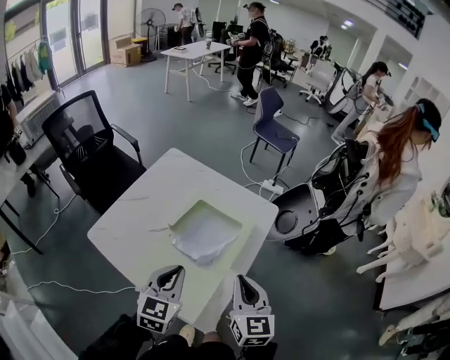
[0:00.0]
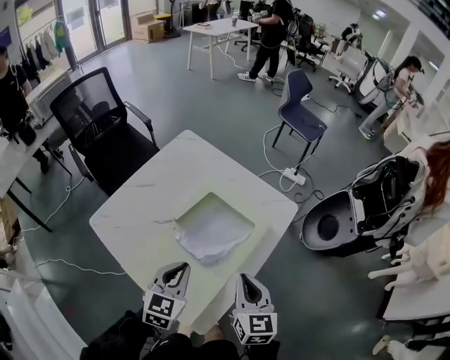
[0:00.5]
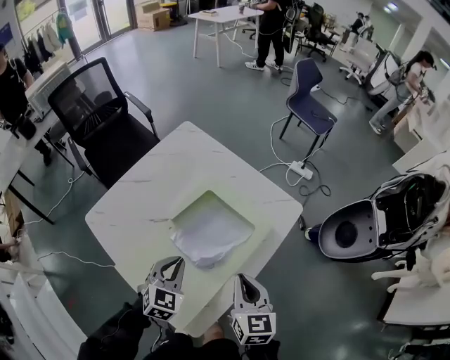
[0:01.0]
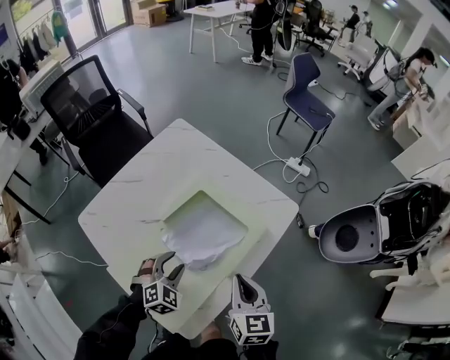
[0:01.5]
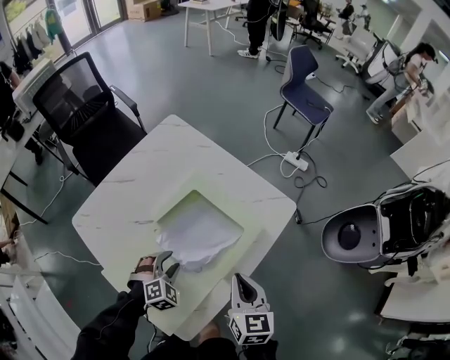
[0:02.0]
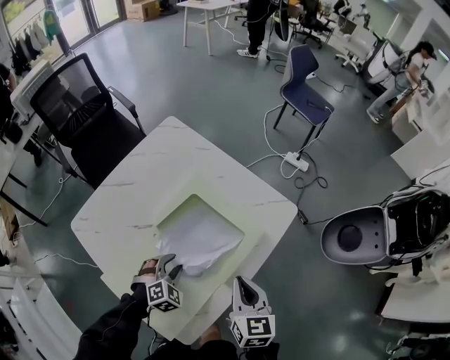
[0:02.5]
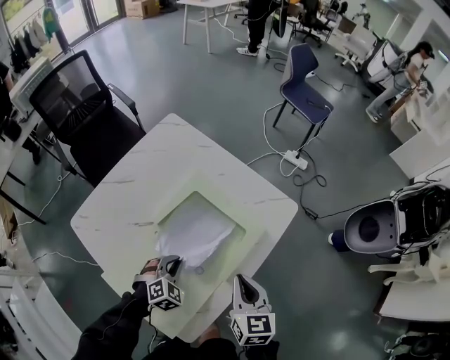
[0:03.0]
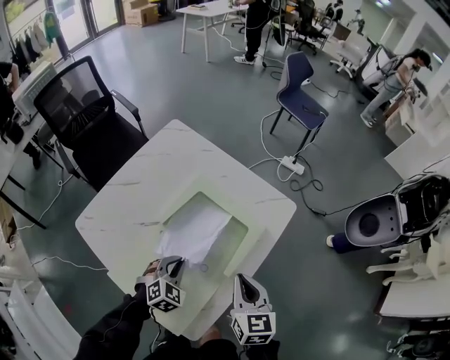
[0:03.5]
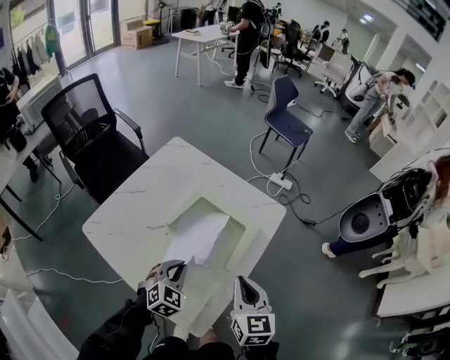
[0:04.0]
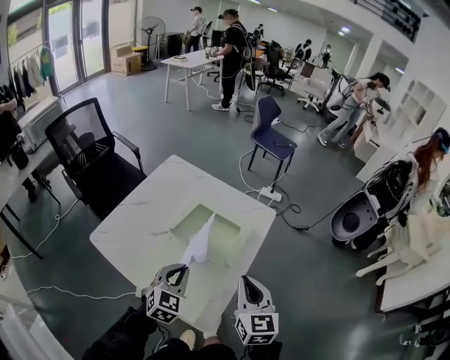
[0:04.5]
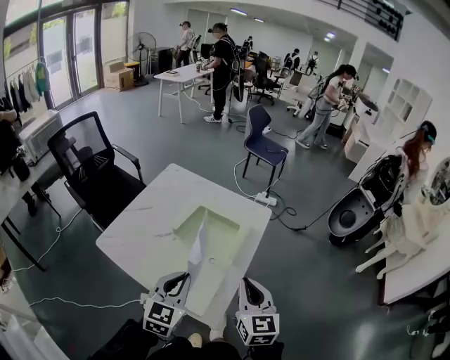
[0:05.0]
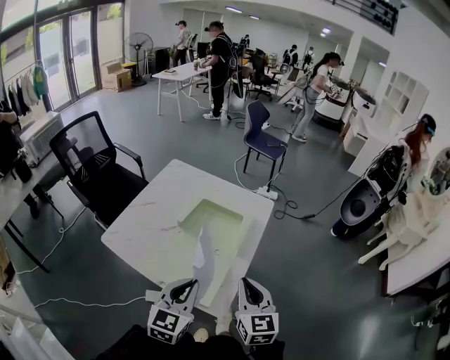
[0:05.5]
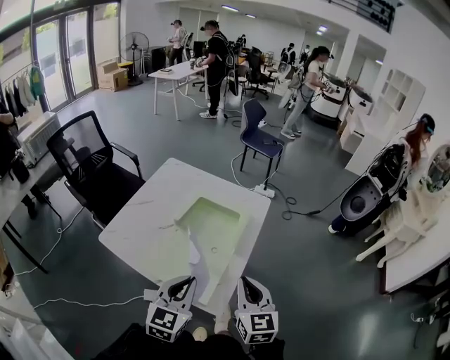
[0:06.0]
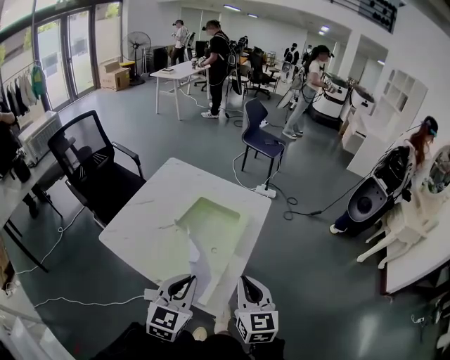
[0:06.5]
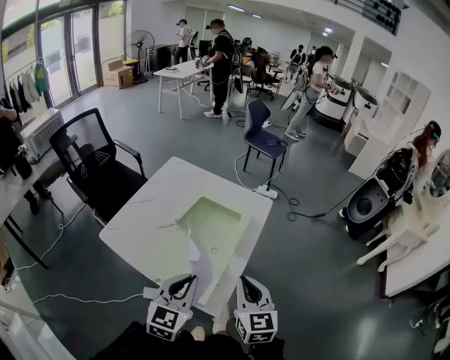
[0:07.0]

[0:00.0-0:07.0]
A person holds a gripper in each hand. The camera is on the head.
0:00.0 to 0:02.0: The right gripper heads forward, downward and to the right, covering about 25 cm. The left gripper shifts roughly 30 cm downward and forward, tips its fingers downward by roughly 30 degrees, and opens its fingers.
0:02.0 to 0:03.5: The left gripper closes up.
0:03.5 to 0:05.0: The right gripper goes some 30 cm backward and upward, while the left gripper goes roughly 35 cm upward and backward, and angles its fingers upward, by about 30 degrees.
0:05.0 to 0:07.0: The left gripper heads backward, covering approximately 5 cm.

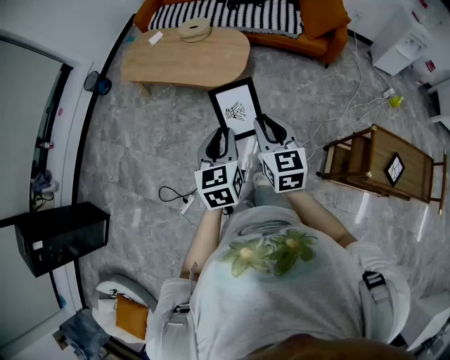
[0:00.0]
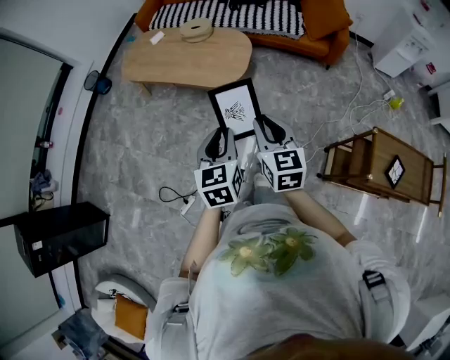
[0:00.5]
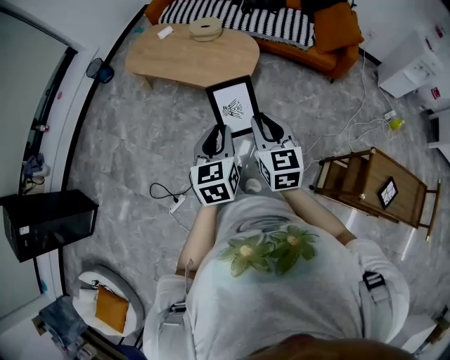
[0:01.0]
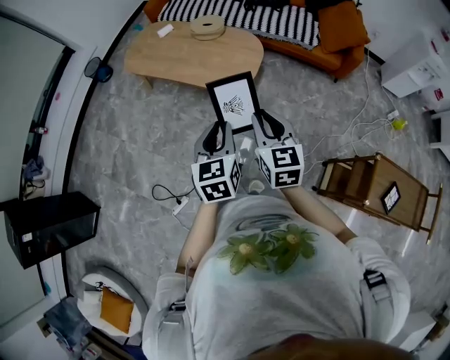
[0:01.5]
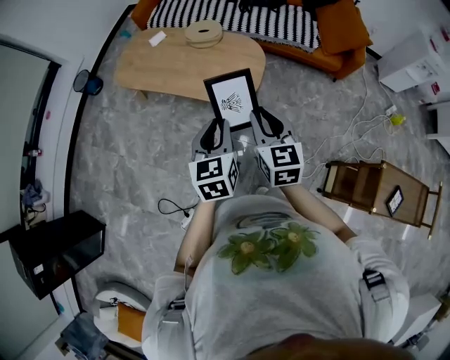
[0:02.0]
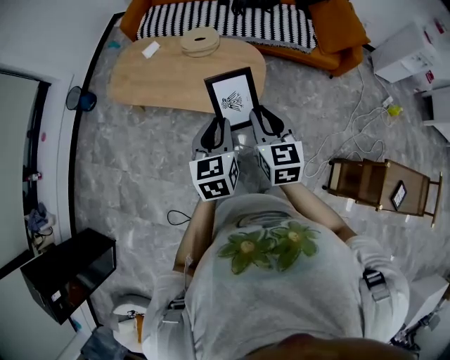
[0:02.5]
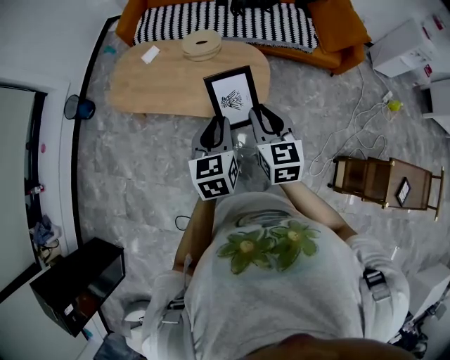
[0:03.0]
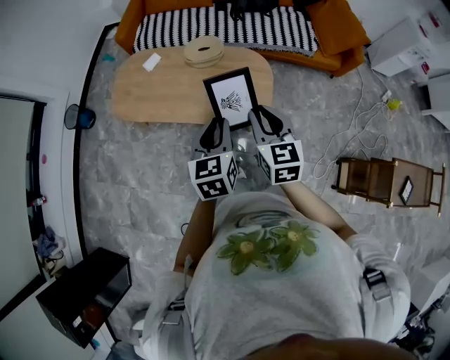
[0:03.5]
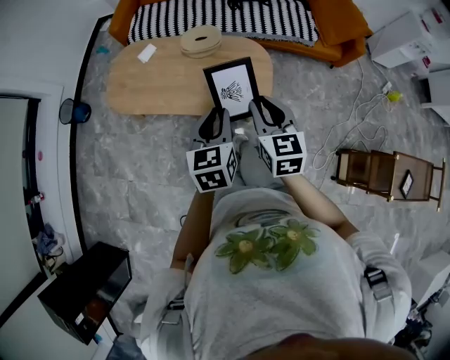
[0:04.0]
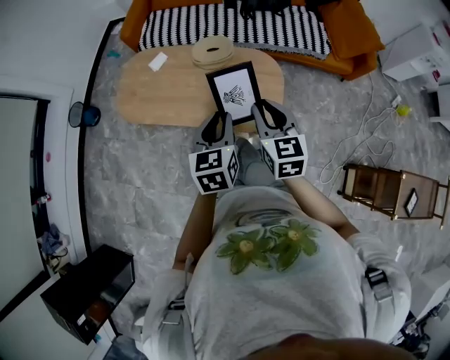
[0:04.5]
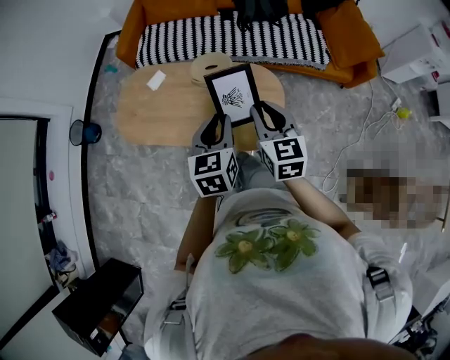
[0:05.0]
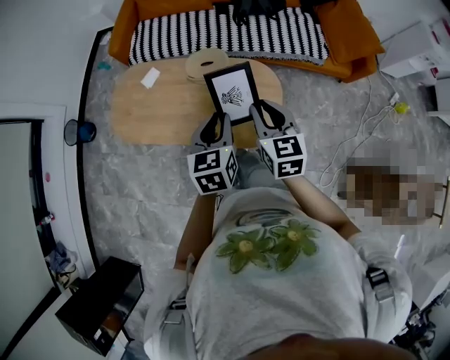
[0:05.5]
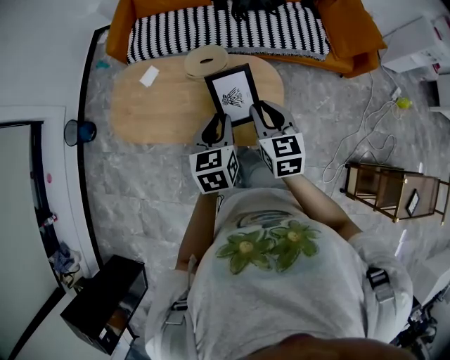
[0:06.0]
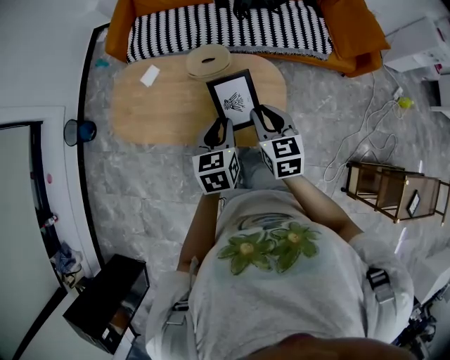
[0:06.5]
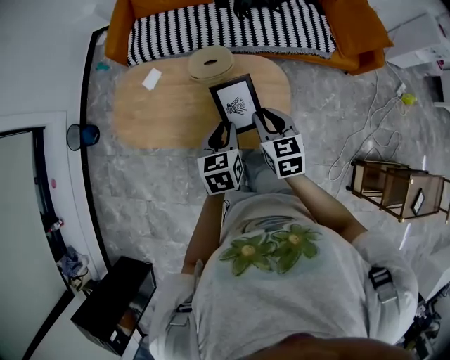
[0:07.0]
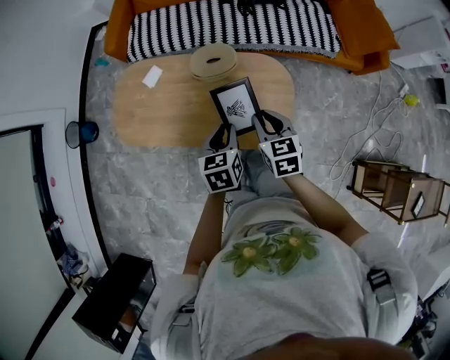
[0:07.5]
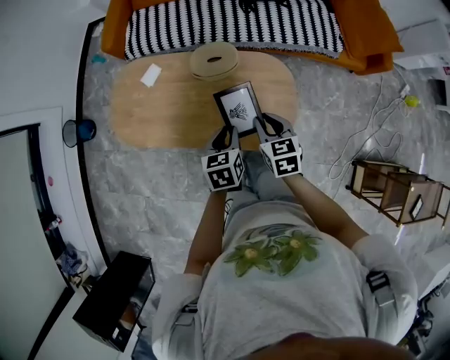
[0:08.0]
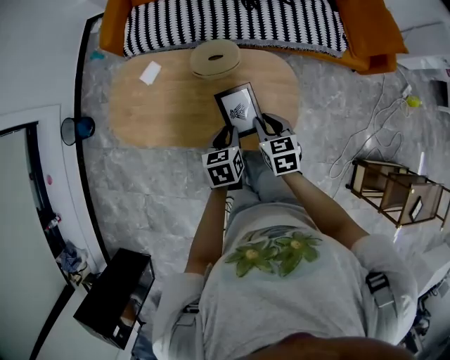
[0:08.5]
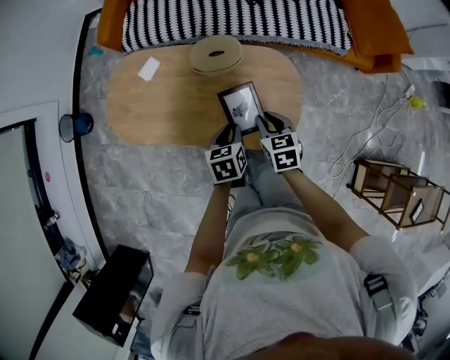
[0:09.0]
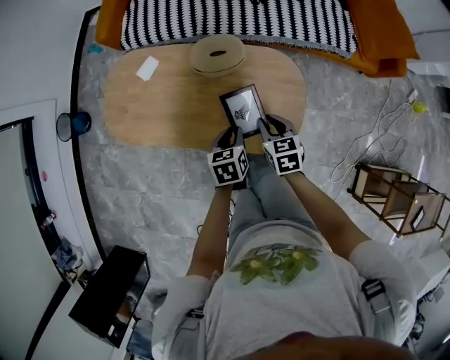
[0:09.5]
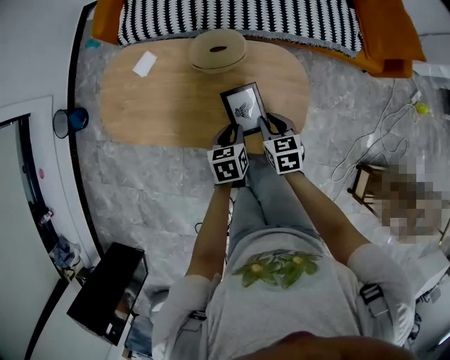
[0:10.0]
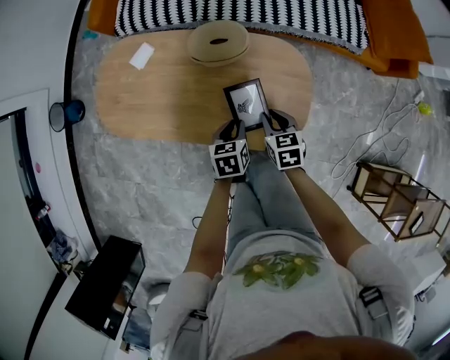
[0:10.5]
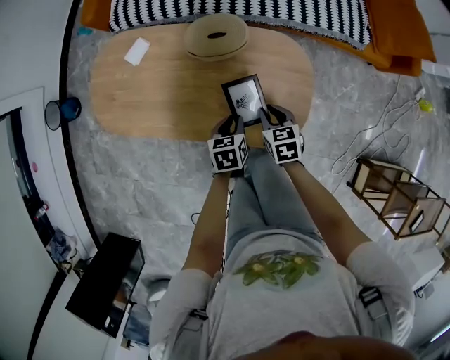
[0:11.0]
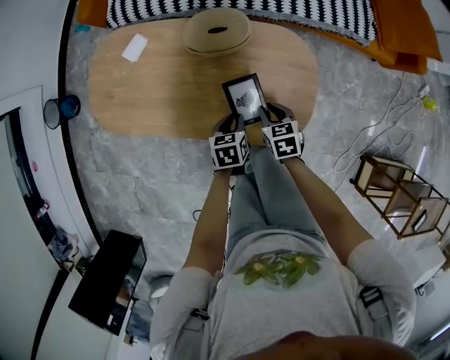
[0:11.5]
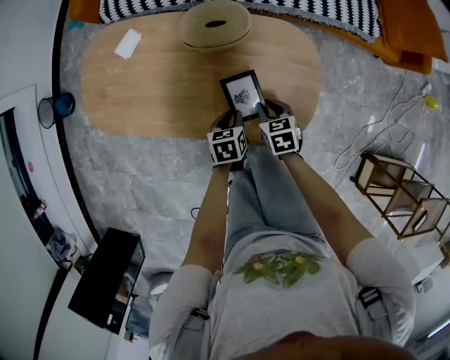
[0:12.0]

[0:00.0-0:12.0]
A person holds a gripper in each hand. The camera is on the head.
0:00.0 to 0:02.0: Both grippers travel together forward, about 20 cm.
0:02.0 to 0:04.0: The two grippers go some 20 cm forward and to the left.
0:04.0 to 0:06.0: The two grippers go roughly 15 cm forward.
0:06.0 to 0:08.0: Both grippers travel together downward, approximately 15 cm.
0:08.0 to 0:10.0: The grippers both shift downward by approximately 15 cm.
0:10.0 to 0:12.0: The grippers both shift downward by roughly 15 cm.

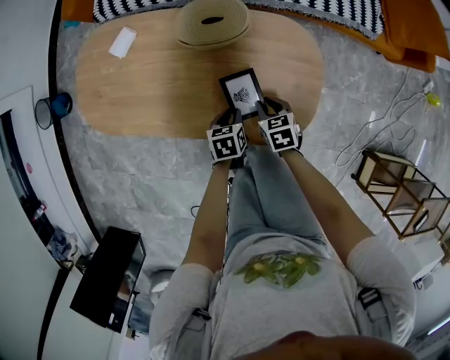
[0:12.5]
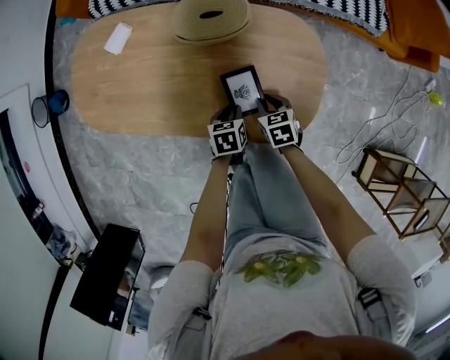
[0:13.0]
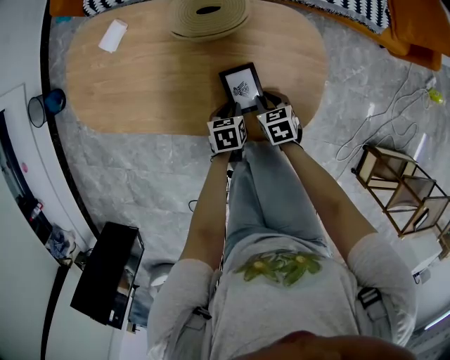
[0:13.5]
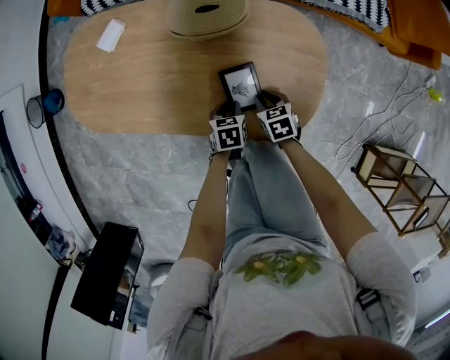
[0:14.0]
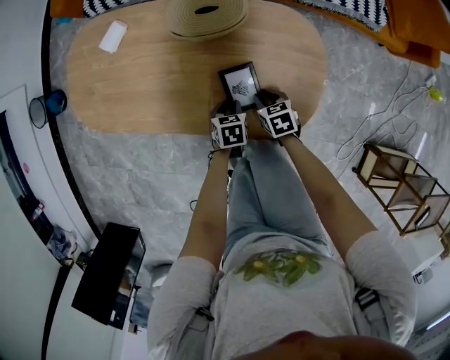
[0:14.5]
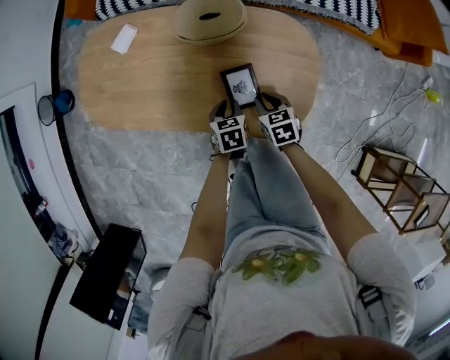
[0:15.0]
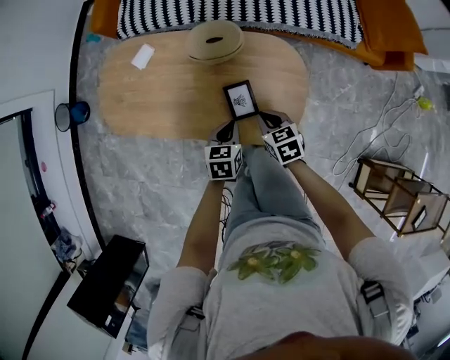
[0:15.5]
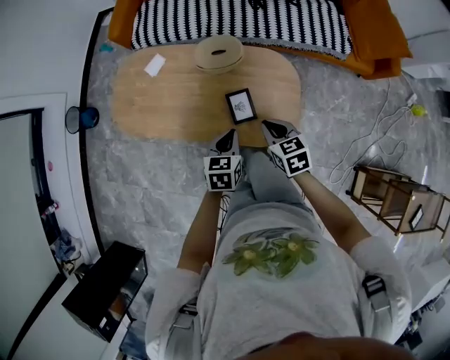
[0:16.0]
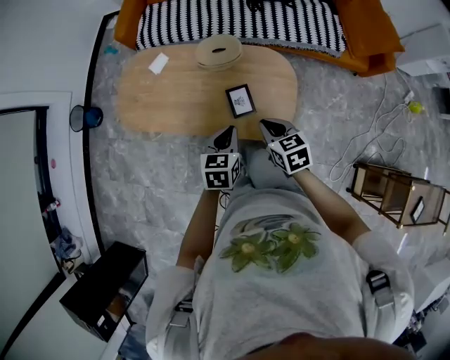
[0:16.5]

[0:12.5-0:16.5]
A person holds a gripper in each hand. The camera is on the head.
0:12.5 to 0:14.5: Both grippers travel together downward, about 5 cm.
0:14.5 to 0:16.5: Both grippers move upward, roughly 35 cm. The right gripper swivels some 20 degrees, and closes its fingers, while the left gripper turns by some 30 degrees, and closes.

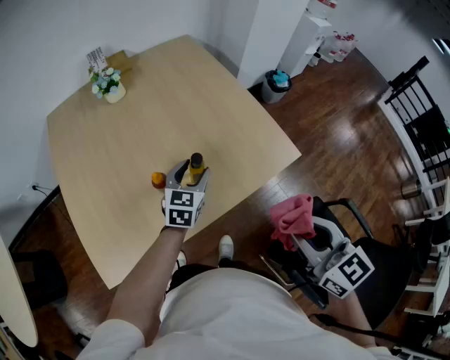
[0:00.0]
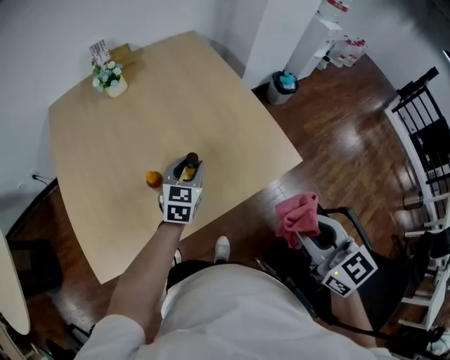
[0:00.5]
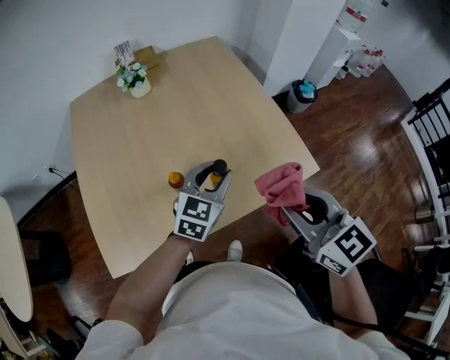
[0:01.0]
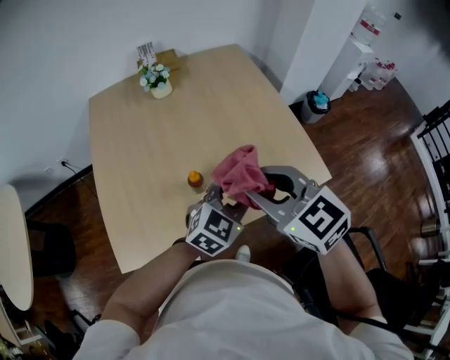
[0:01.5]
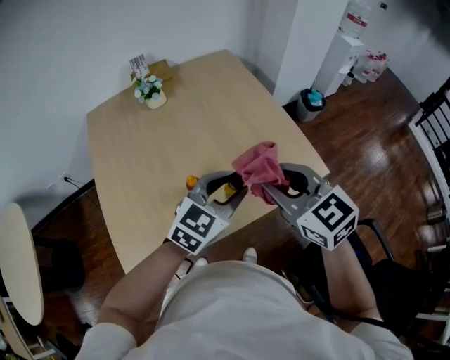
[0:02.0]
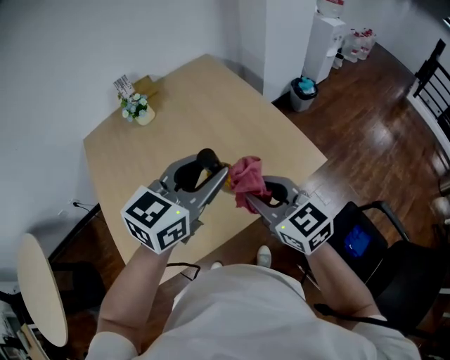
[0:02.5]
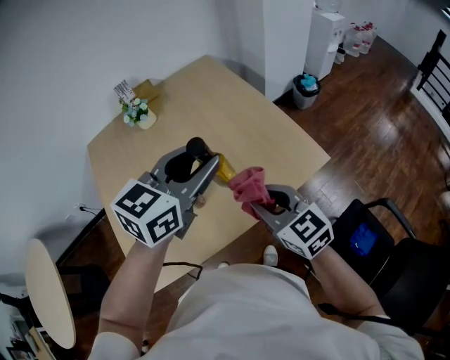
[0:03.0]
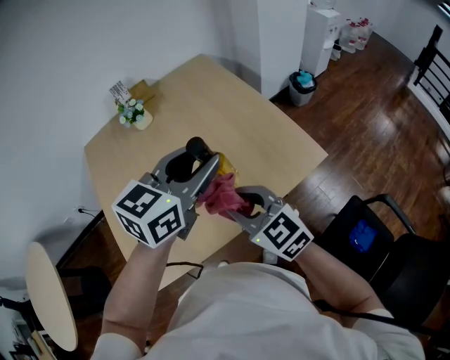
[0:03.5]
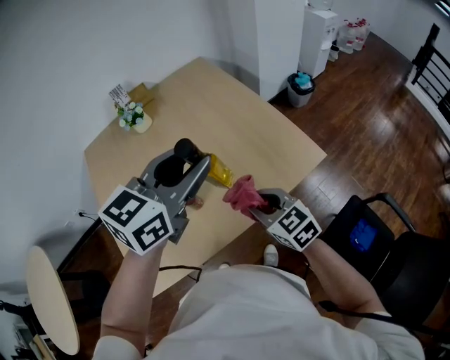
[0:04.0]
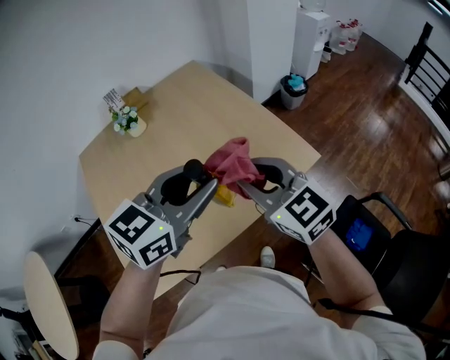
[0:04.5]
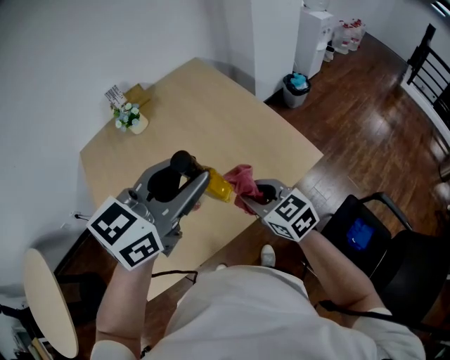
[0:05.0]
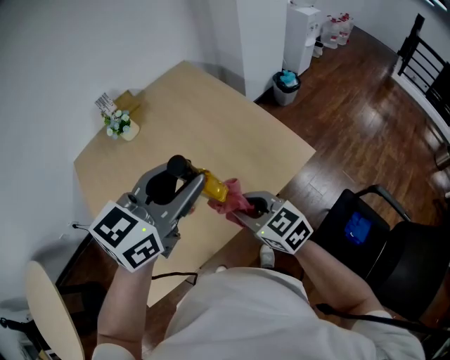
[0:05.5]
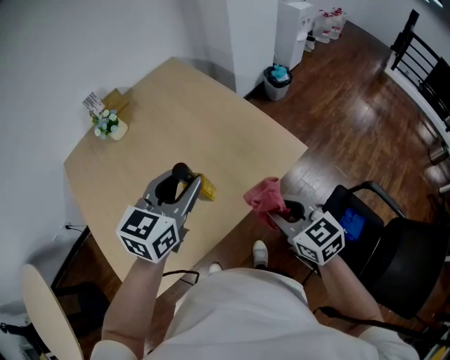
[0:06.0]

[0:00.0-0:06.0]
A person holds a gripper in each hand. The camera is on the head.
0:00.0 to 0:02.0: The right gripper is displaced forward and to the left by approximately 15 cm. The left gripper heads upward and backward, covering approximately 15 cm, swivels about 20 degrees, and closes up.
0:02.0 to 0:04.0: The left gripper goes about 15 cm upward, while the right gripper moves downward, some 15 cm.
0:04.0 to 0:06.0: The left gripper moves downward, approximately 10 cm. Meanwhile the right gripper goes roughly 10 cm to the right, and moves some 15 cm upward and comes back.
